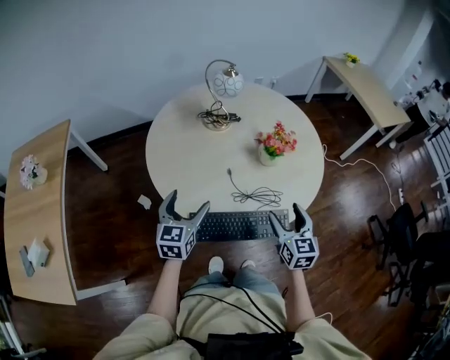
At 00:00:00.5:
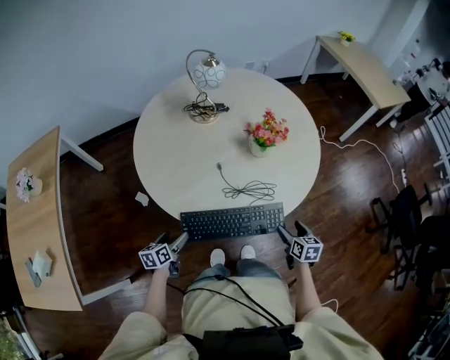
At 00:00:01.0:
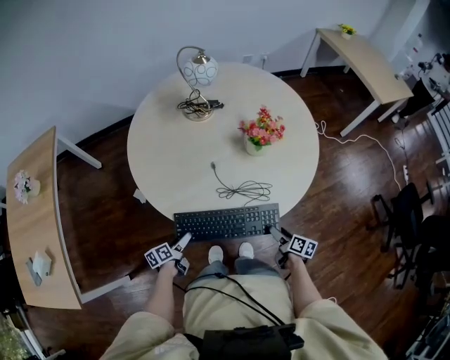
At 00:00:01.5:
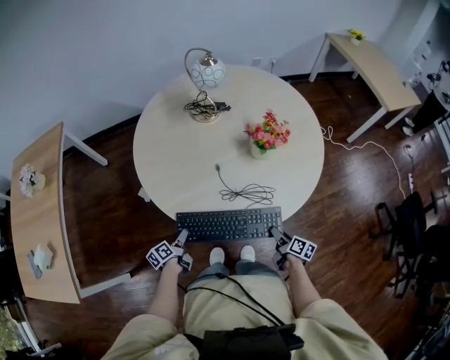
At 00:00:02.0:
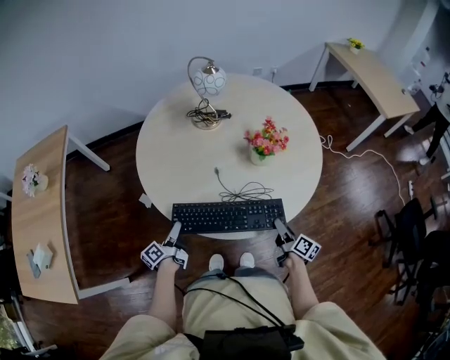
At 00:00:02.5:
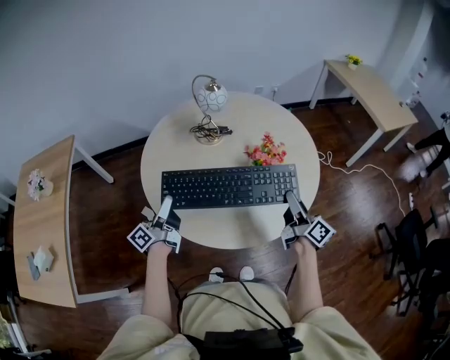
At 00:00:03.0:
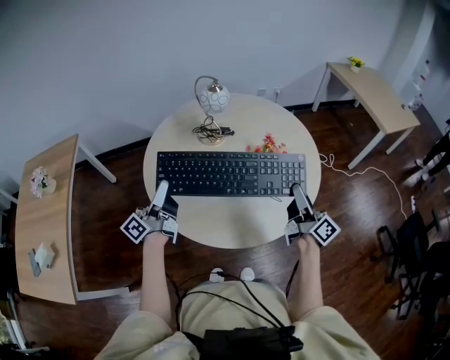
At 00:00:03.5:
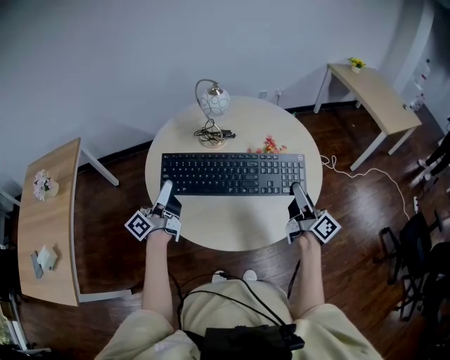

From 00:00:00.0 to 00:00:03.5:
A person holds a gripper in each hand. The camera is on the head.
From 00:00:00.0 to 00:00:02.0: The right gripper travels downward and to the right by some 20 cm, rolls clockwise, seen from behind, by roughly 60 degrees, and closes its fingers; the left gripper travels downward by some 20 cm, rotates around the line of its fingers by approximately 70 degrees, counterclockwise from behind, and closes.
From 00:00:02.0 to 00:00:03.5: The grippers both shift upward and forward by approximately 30 cm. The right gripper tips its fingers upward by about 30 degrees. Meanwhile the left gripper angles its fingers upward, by approximately 30 degrees.

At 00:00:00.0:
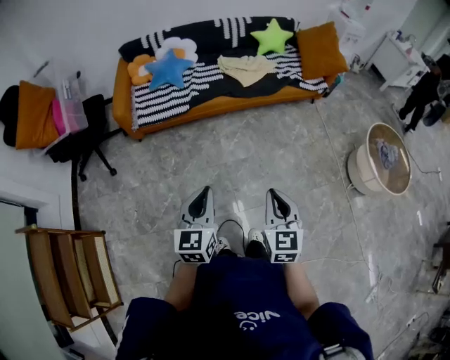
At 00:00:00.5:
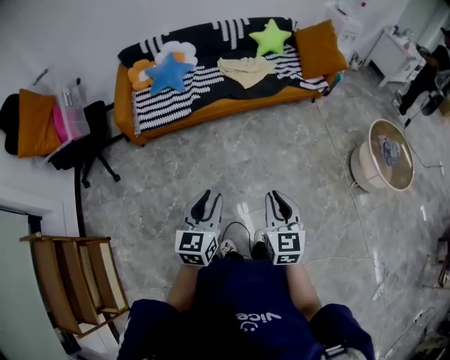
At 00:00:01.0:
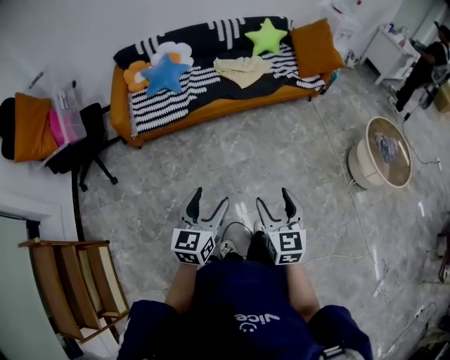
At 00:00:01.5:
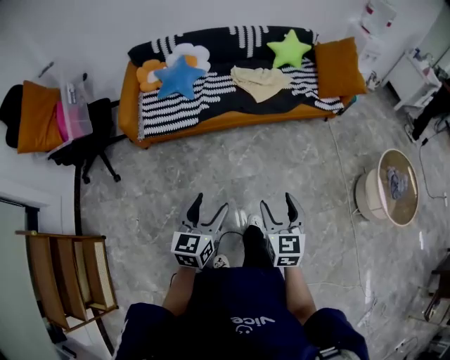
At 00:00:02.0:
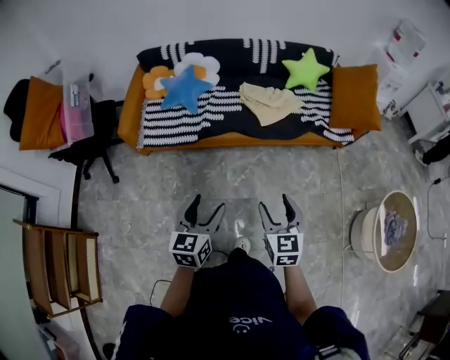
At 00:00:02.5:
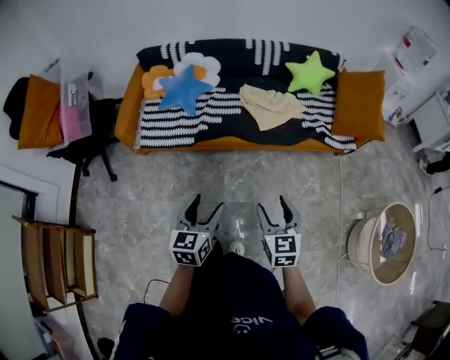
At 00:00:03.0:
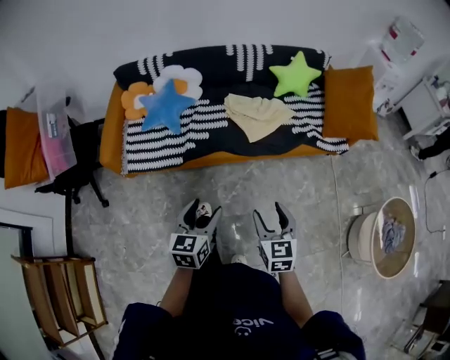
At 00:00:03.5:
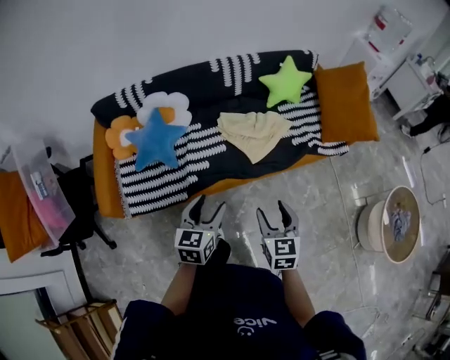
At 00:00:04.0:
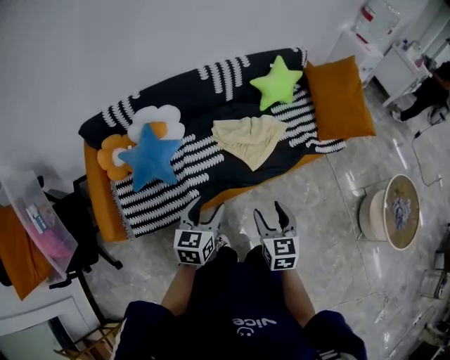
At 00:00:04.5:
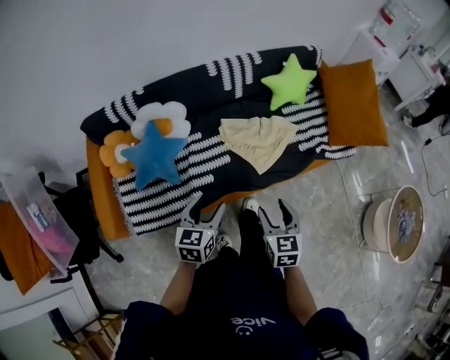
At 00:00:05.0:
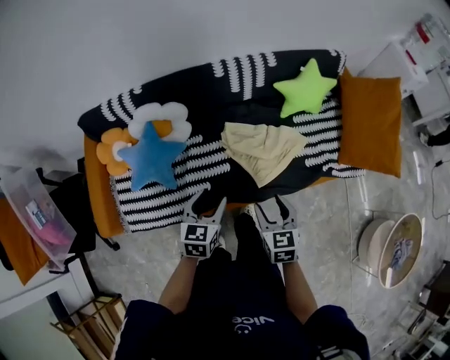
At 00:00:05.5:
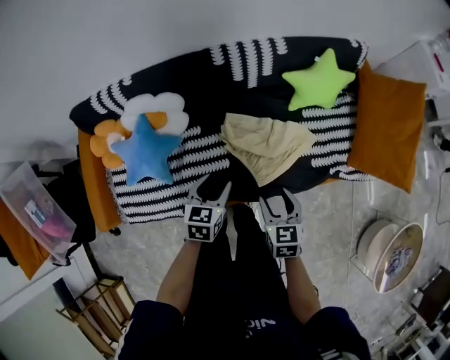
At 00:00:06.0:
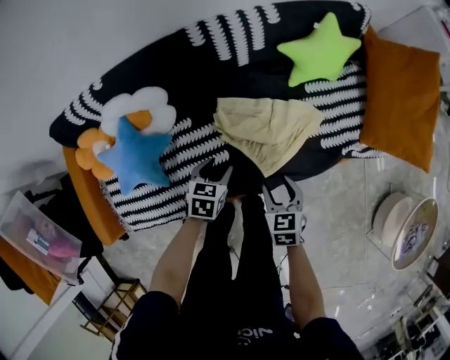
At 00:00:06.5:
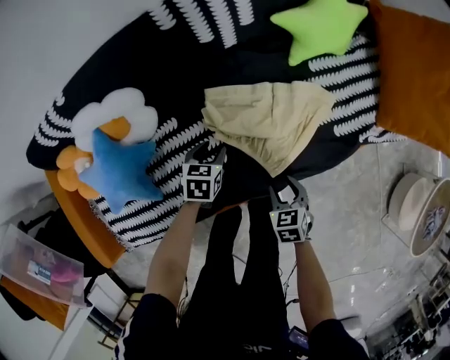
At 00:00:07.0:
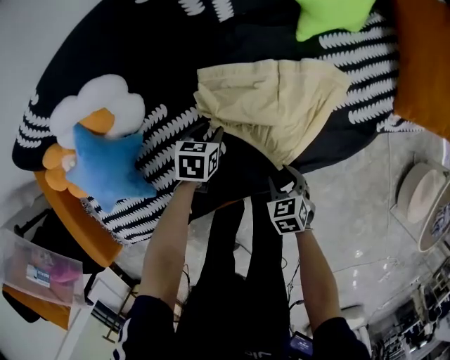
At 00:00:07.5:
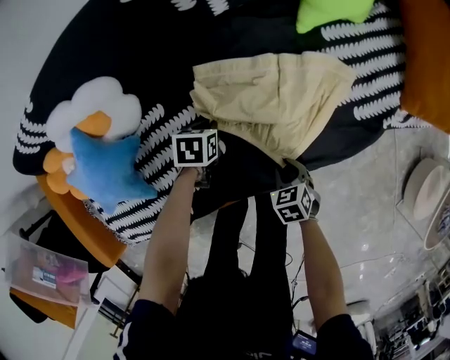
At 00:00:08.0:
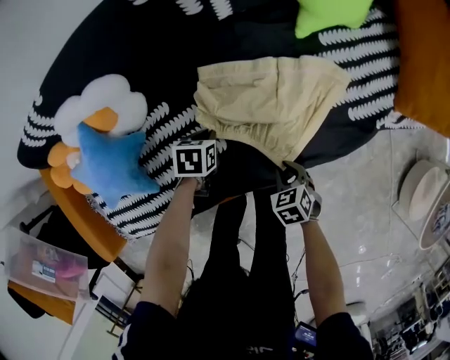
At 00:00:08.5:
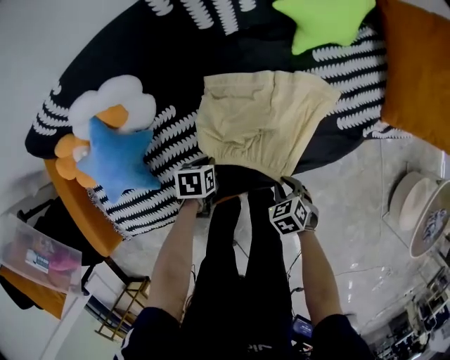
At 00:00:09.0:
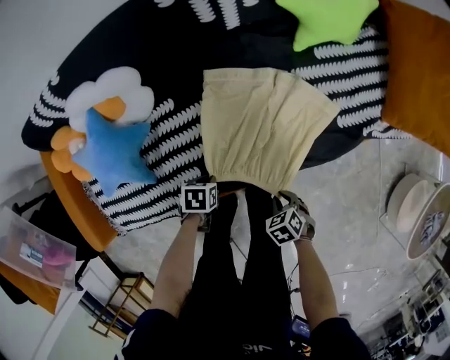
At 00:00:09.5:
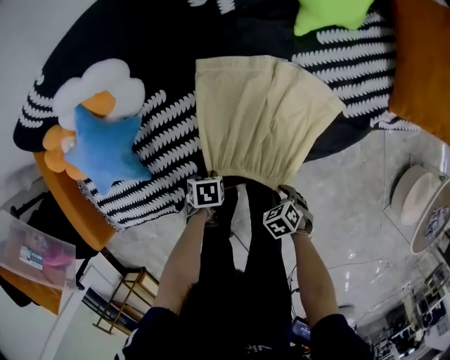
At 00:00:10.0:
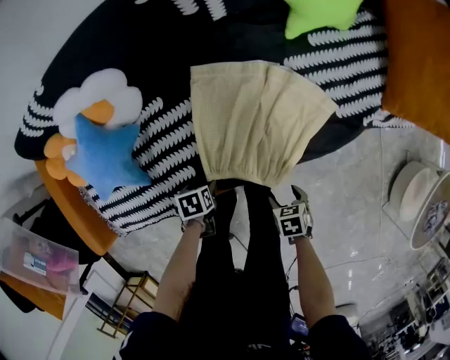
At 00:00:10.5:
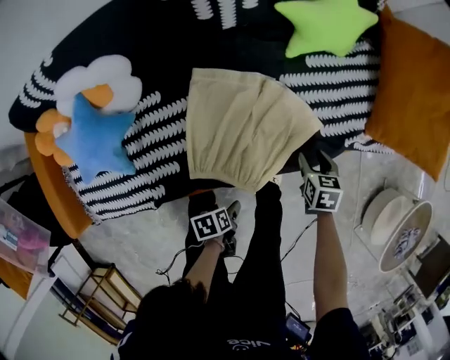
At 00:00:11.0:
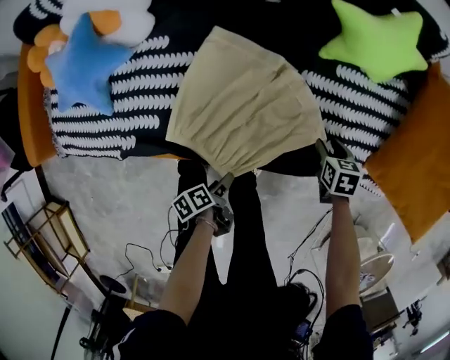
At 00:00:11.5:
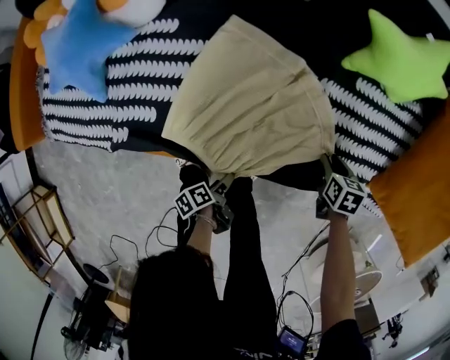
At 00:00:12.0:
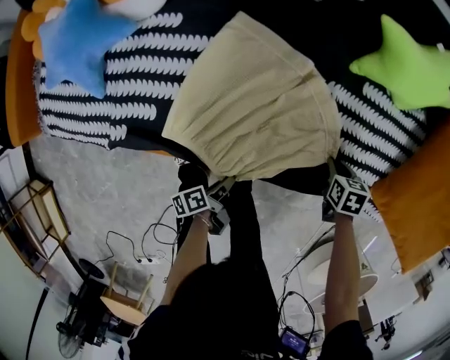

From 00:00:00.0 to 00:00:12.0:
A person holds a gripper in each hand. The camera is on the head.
From 00:00:00.0 to 00:00:02.0: The grippers both shift forward by roughly 25 cm. The right gripper opens its fingers, while the left gripper opens up.
From 00:00:02.0 to 00:00:04.0: The two grippers go roughly 35 cm forward. The right gripper changes its angle by approximately 20 degrees, while the left gripper turns by roughly 20 degrees.
From 00:00:04.0 to 00:00:06.0: The two grippers go some 35 cm forward and downward. The left gripper turns by about 30 degrees. Meanwhile the right gripper turns by roughly 20 degrees.
From 00:00:06.0 to 00:00:08.0: The grippers both shift downward by about 20 cm. The right gripper turns by about 20 degrees, and closes its fingers. Meanwhile the left gripper closes up.
From 00:00:08.0 to 00:00:10.0: The left gripper moves about 20 cm, turns by about 30 degrees, and opens its fingers. The right gripper changes place by approximately 10 cm, rotates about 20 degrees, and opens up.
From 00:00:10.0 to 00:00:12.0: The left gripper changes place by roughly 25 cm, angles its fingers upward, by approximately 50 degrees, and closes; the right gripper goes upward and returns, about 10 cm each way, and closes its fingers.

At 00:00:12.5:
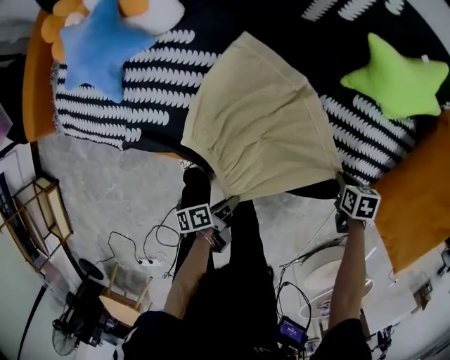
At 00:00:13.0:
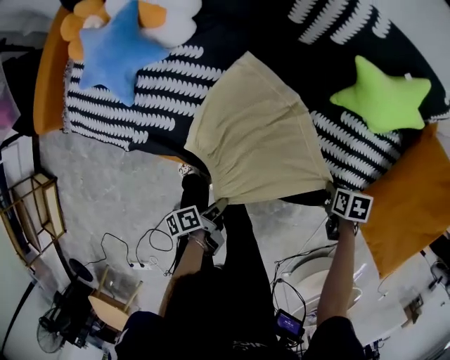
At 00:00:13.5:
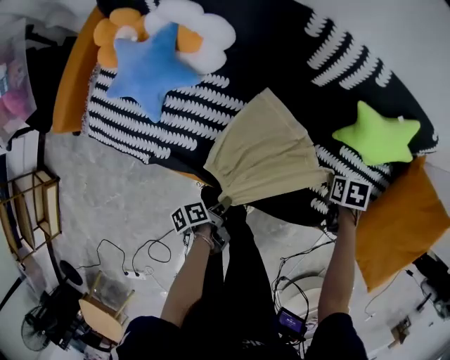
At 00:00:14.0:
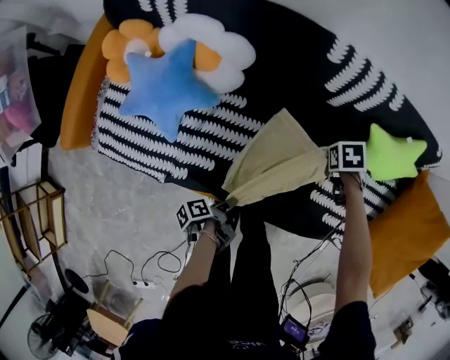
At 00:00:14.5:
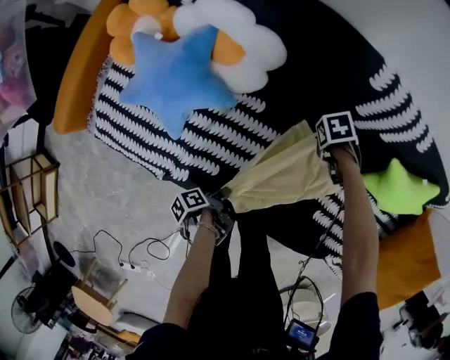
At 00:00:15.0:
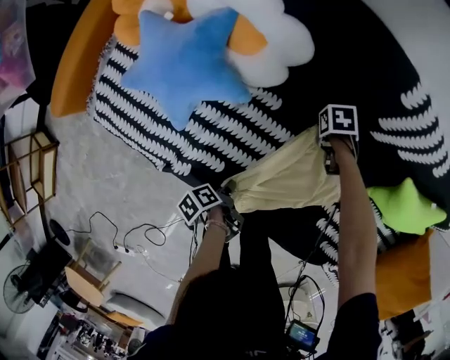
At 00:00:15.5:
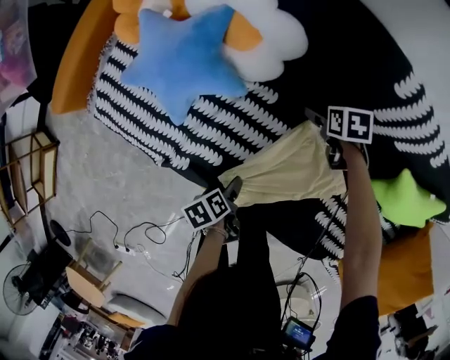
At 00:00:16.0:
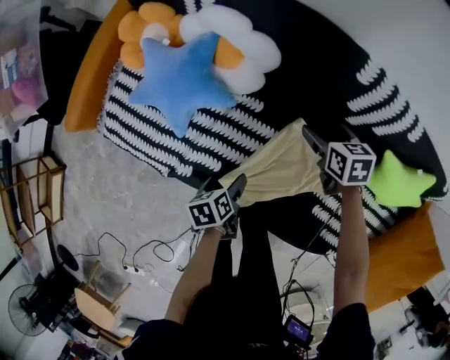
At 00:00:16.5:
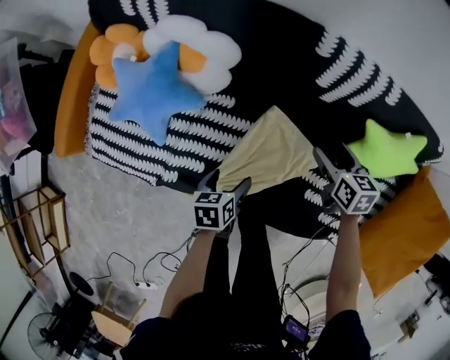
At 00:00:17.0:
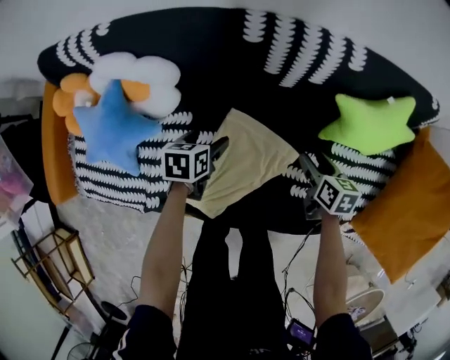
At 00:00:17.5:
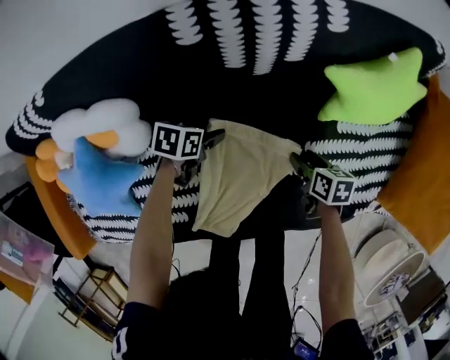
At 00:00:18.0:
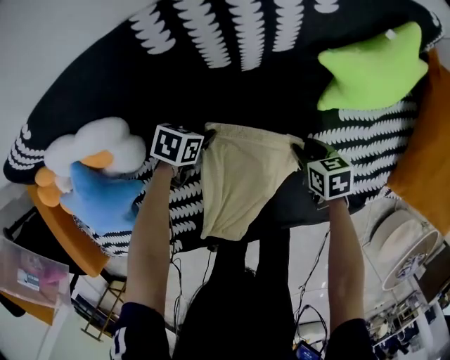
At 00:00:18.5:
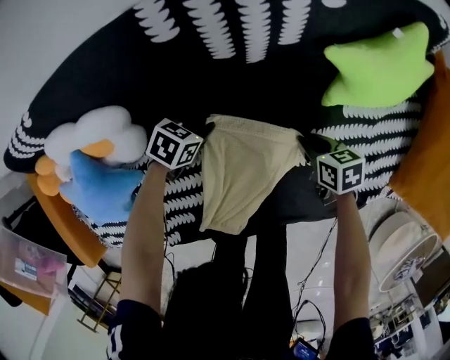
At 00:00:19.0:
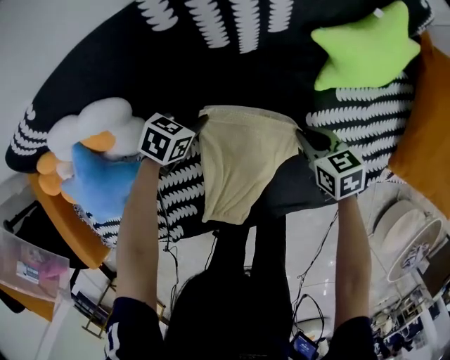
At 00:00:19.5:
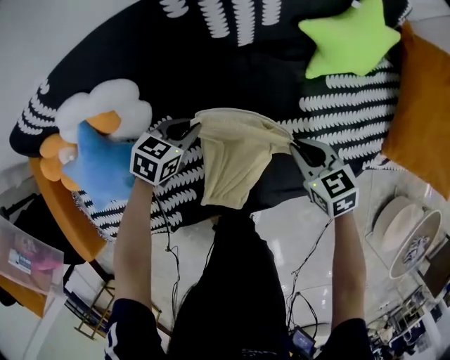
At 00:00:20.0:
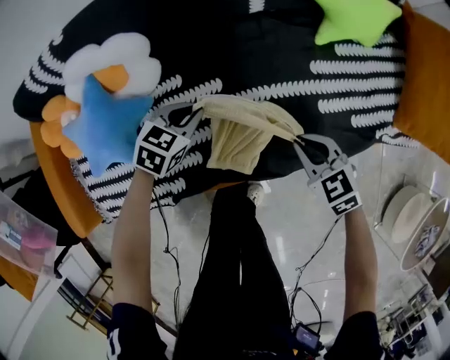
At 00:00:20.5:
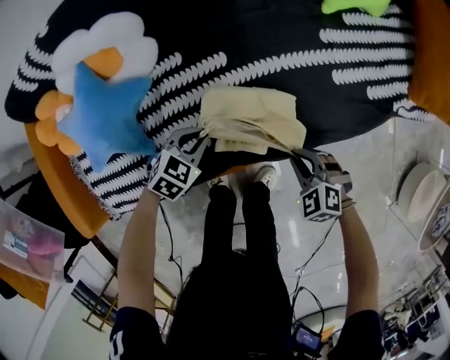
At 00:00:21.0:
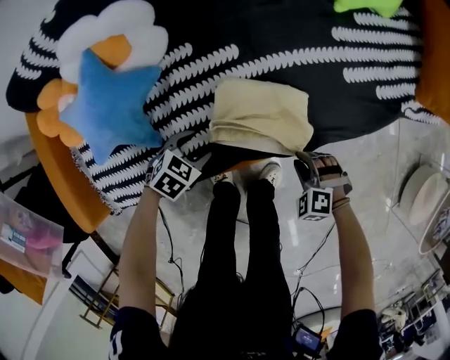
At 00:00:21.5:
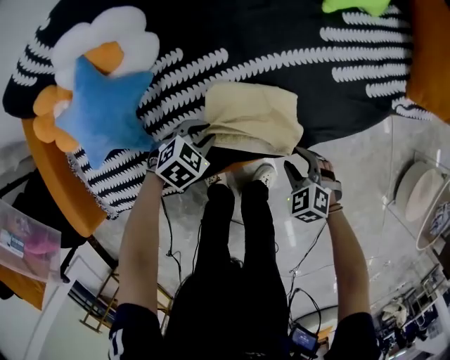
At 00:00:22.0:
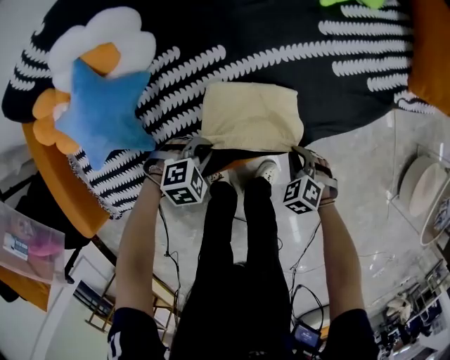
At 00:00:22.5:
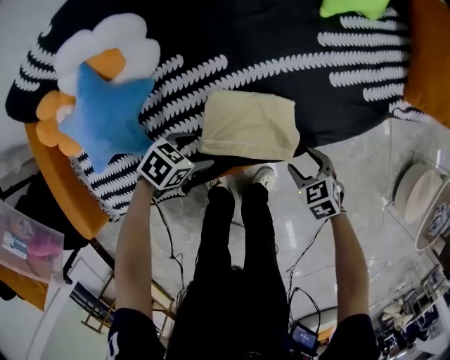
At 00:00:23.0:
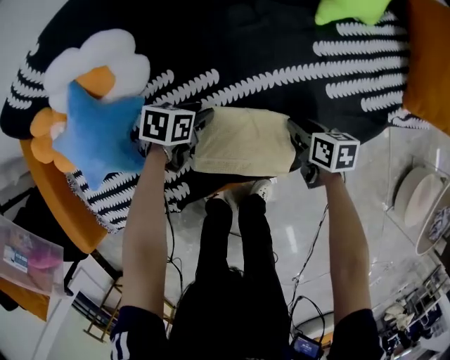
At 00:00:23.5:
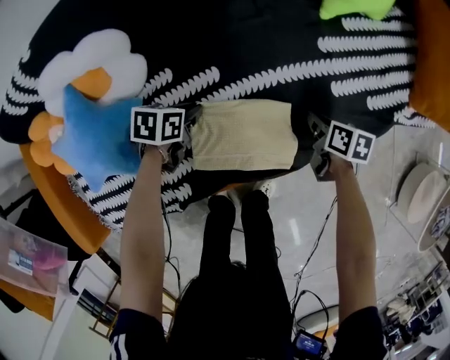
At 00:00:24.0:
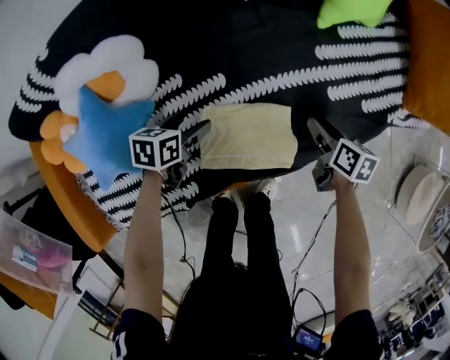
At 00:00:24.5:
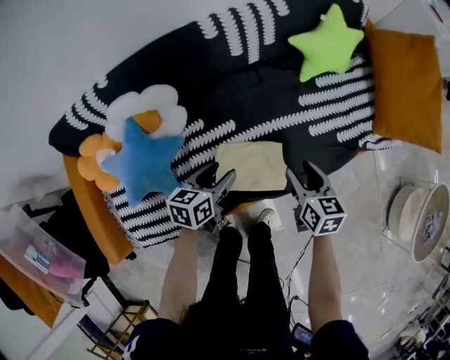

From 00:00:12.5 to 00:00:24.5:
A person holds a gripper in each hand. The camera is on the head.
From 00:00:12.5 to 00:00:14.5: The left gripper travels upward and back again, about 10 cm each way, and swivels roughly 40 degrees, while the right gripper goes upward and returns, roughly 10 cm each way, and swivels approximately 30 degrees.
From 00:00:14.5 to 00:00:16.5: The two grippers go roughly 15 cm upward. The right gripper tips its fingers upward by some 40 degrees, and opens; the left gripper rotates around the line of its fingers by approximately 80 degrees, clockwise from behind, and opens its fingers.
From 00:00:16.5 to 00:00:18.5: The left gripper shifts by about 25 cm, rotates around the line of its fingers by some 50 degrees, clockwise from behind, and closes; the right gripper moves downward, roughly 20 cm, rotates approximately 30 degrees, and closes up.
From 00:00:18.5 to 00:00:20.5: The right gripper reaches roughly 15 cm upward, then returns, and rotates around the line of its fingers by some 60 degrees, counterclockwise from behind; the left gripper shifts by some 30 cm, and swivels roughly 30 degrees.
From 00:00:20.5 to 00:00:22.5: The left gripper swivels approximately 30 degrees, and opens. The right gripper rotates approximately 30 degrees, and opens up.
From 00:00:22.5 to 00:00:24.5: Both grippers travel together upward, approximately 20 cm. The right gripper changes its angle by approximately 50 degrees, and closes, then opens again; the left gripper changes its angle by about 50 degrees, and closes, then reopens.
